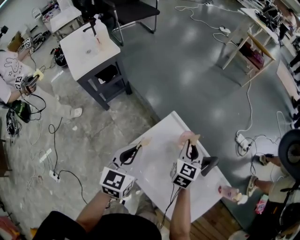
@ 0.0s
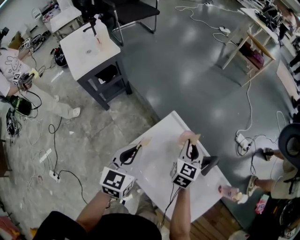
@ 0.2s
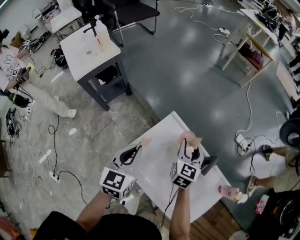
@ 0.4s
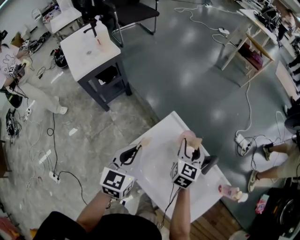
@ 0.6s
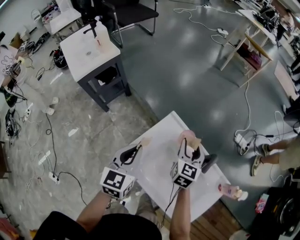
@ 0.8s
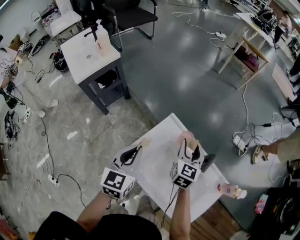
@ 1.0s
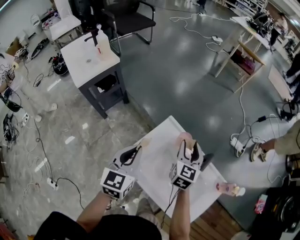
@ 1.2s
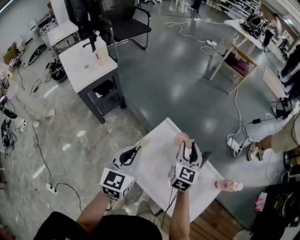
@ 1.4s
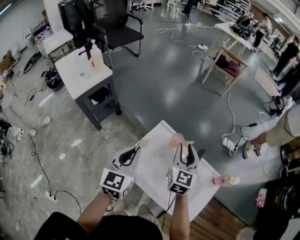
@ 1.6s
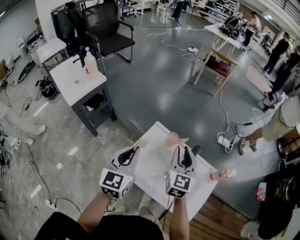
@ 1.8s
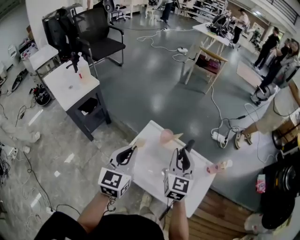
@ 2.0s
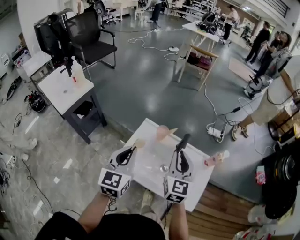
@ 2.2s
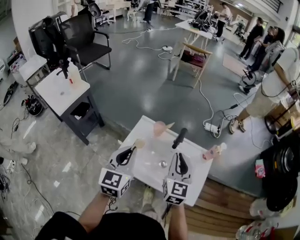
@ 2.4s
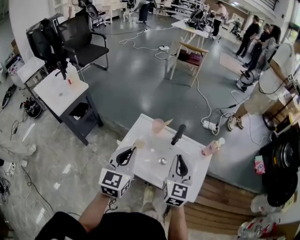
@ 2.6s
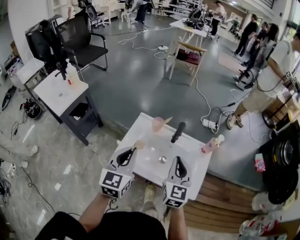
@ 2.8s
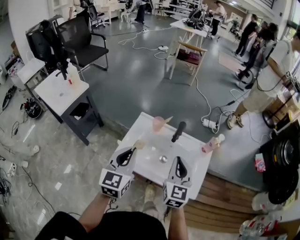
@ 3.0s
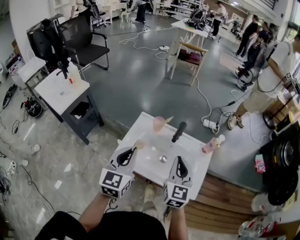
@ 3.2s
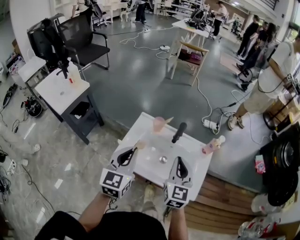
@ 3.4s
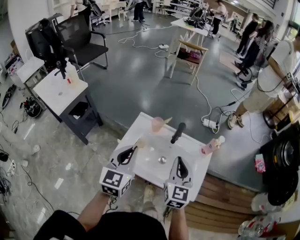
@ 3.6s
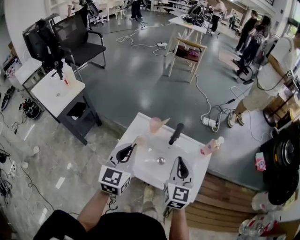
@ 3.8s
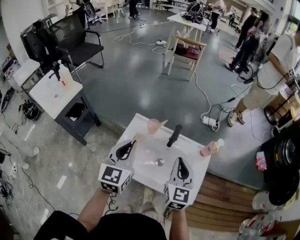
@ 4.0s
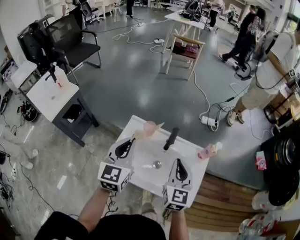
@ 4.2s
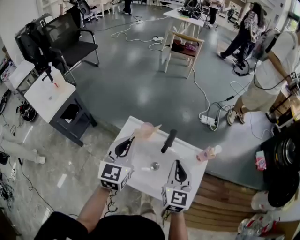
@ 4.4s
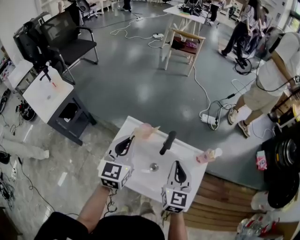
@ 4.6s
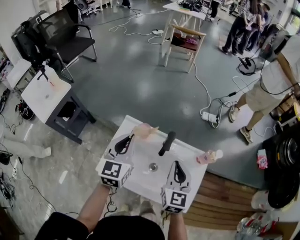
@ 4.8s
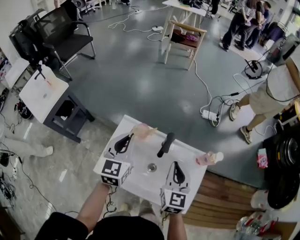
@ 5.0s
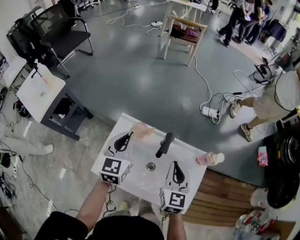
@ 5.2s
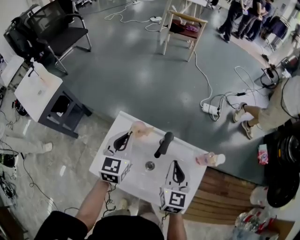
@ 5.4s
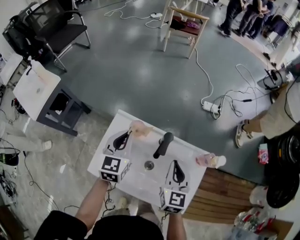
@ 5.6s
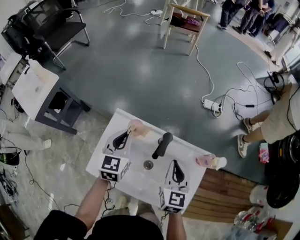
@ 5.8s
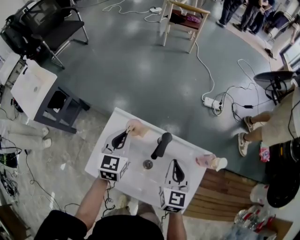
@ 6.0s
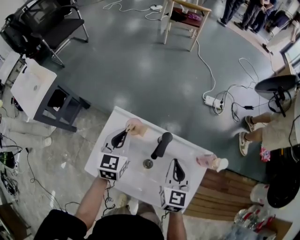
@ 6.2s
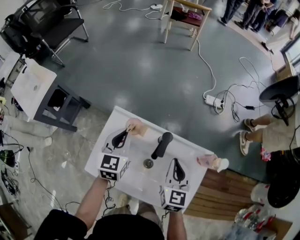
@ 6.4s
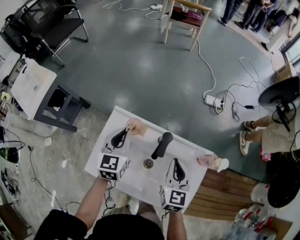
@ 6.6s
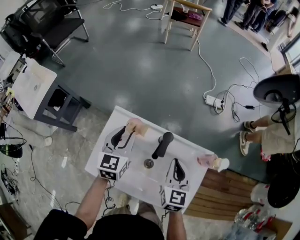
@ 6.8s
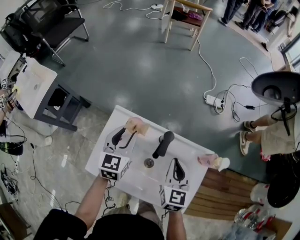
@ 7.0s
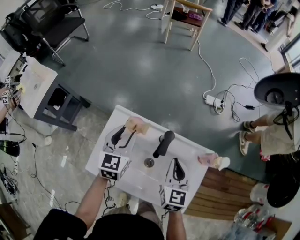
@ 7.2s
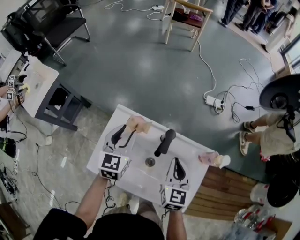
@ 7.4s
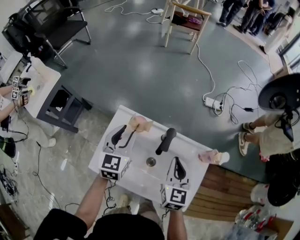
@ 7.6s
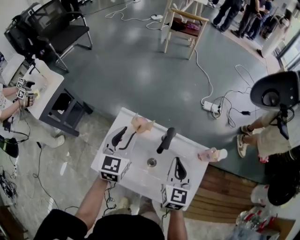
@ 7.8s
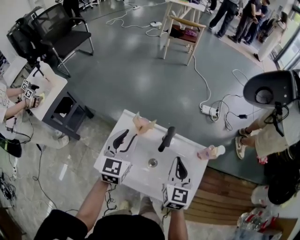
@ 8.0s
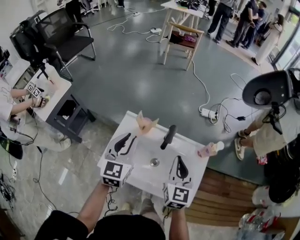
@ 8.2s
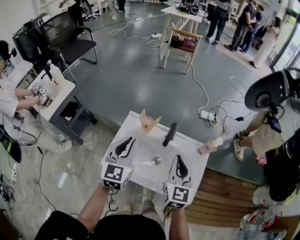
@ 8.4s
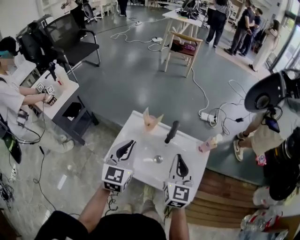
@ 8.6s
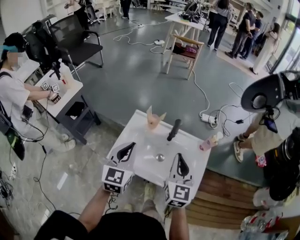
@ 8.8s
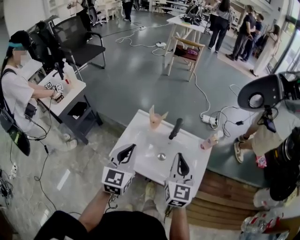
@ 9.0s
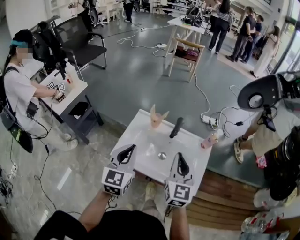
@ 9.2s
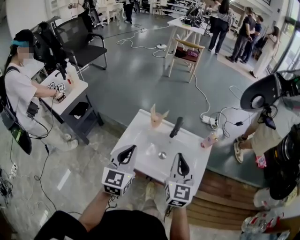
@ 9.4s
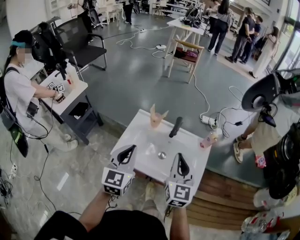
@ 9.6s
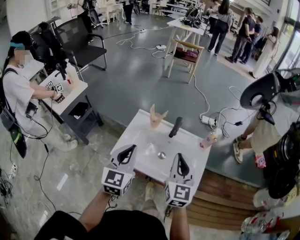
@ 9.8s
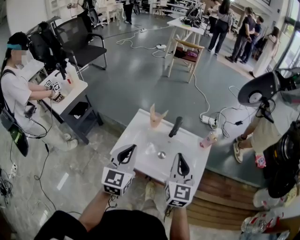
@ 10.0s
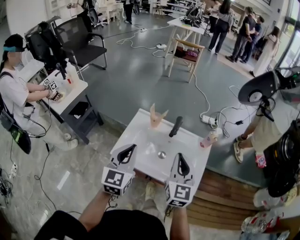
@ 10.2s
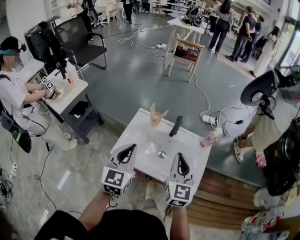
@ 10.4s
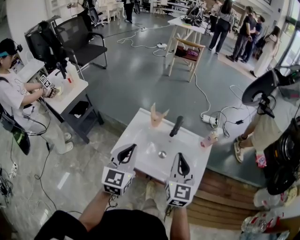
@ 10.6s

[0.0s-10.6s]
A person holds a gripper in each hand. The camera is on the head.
0.0s to 1.6s: The right gripper goes about 15 cm upward and backward; the left gripper goes some 10 cm upward.
1.6s to 3.0s: The right gripper travels backward and to the right by some 25 cm, and closes its fingers. The left gripper is displaced backward and to the right by some 15 cm.
3.0s to 4.6s: The left gripper is displaced forward by roughly 20 cm, while the right gripper moves forward and to the right, roughly 10 cm.
4.6s to 6.0s: Both grippers move downward and forward, some 15 cm.
6.0s to 7.6s: The left gripper opens up.
7.6s to 9.0s: The grippers both shift backward and upward by about 25 cm. The left gripper closes.
9.0s to 10.6s: The grippers stay close to where they were, moving slightly.

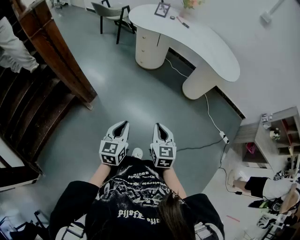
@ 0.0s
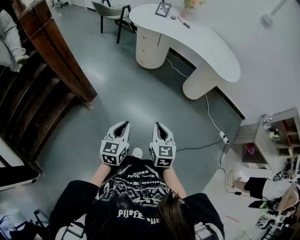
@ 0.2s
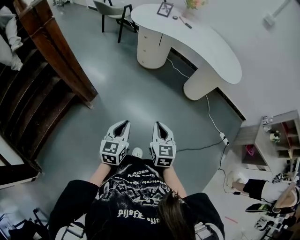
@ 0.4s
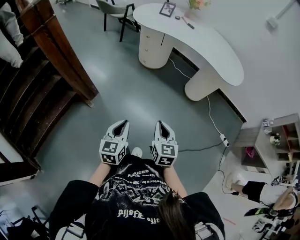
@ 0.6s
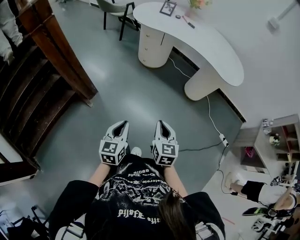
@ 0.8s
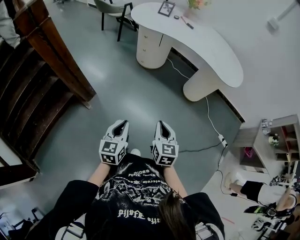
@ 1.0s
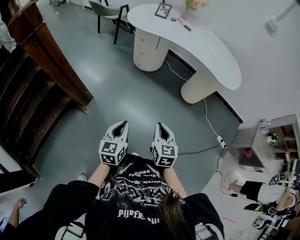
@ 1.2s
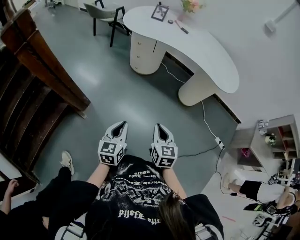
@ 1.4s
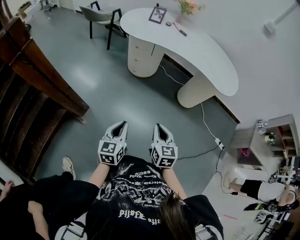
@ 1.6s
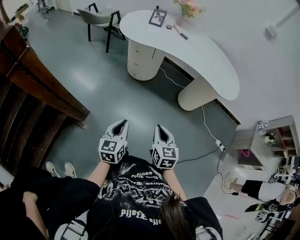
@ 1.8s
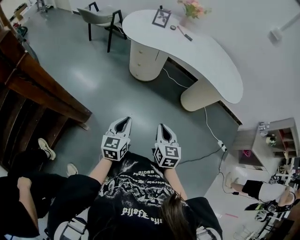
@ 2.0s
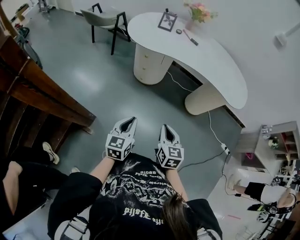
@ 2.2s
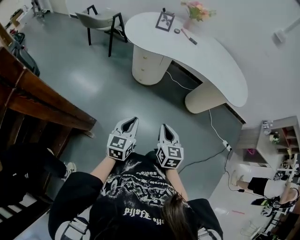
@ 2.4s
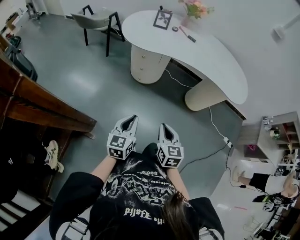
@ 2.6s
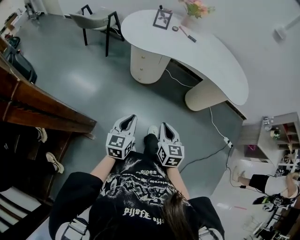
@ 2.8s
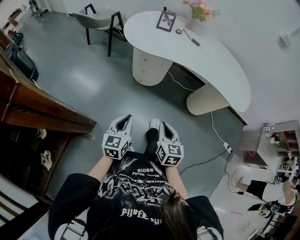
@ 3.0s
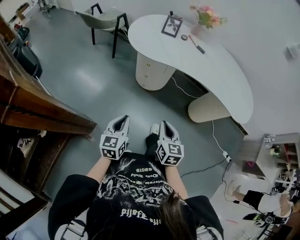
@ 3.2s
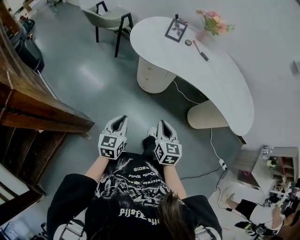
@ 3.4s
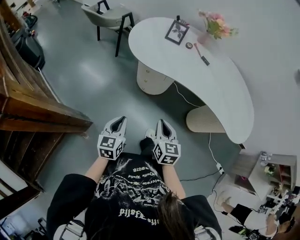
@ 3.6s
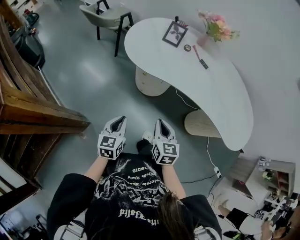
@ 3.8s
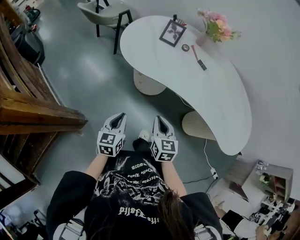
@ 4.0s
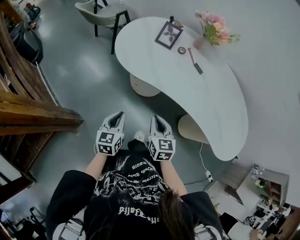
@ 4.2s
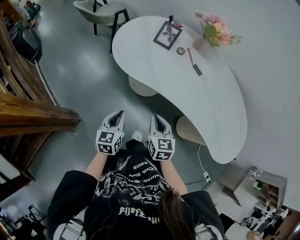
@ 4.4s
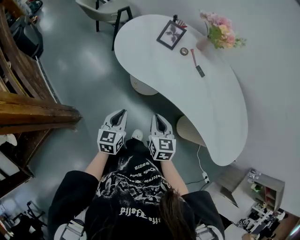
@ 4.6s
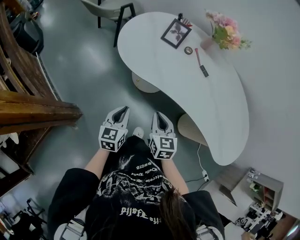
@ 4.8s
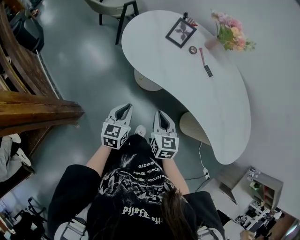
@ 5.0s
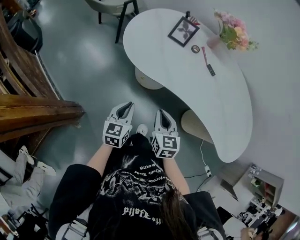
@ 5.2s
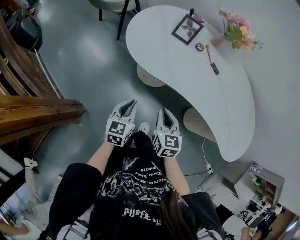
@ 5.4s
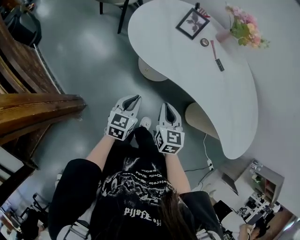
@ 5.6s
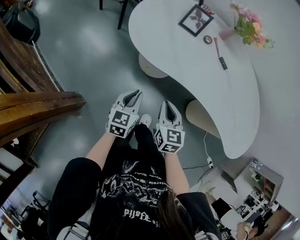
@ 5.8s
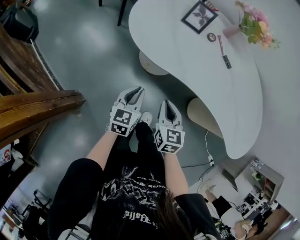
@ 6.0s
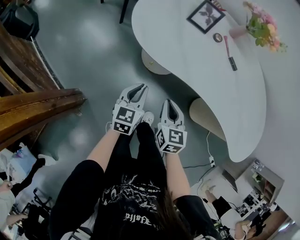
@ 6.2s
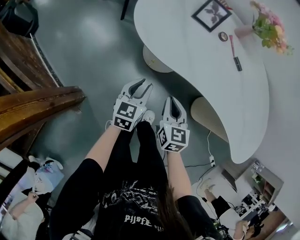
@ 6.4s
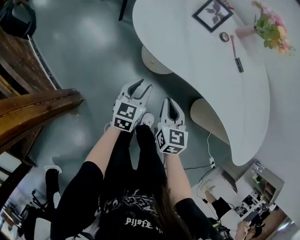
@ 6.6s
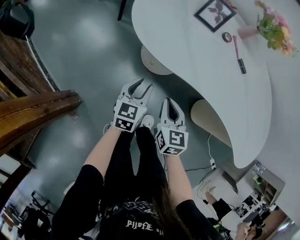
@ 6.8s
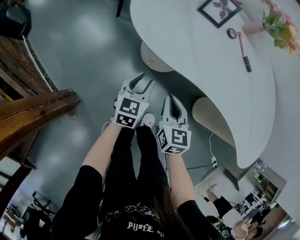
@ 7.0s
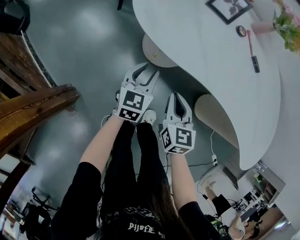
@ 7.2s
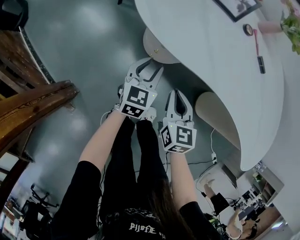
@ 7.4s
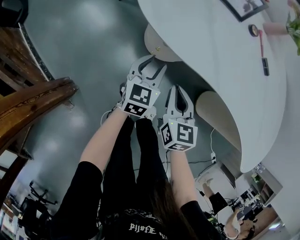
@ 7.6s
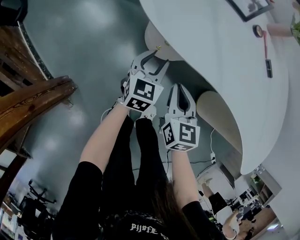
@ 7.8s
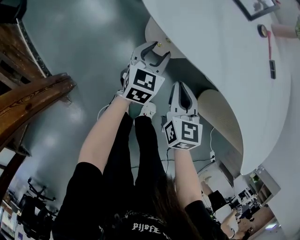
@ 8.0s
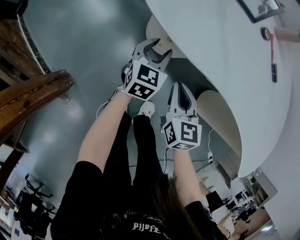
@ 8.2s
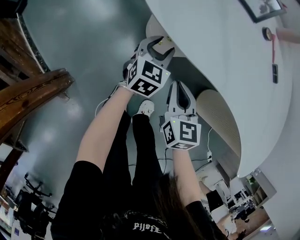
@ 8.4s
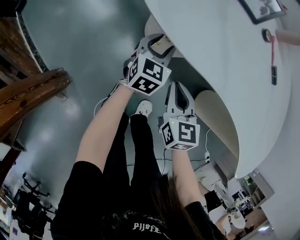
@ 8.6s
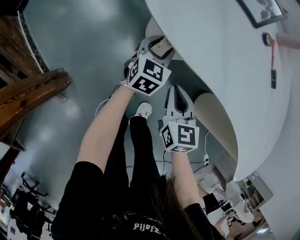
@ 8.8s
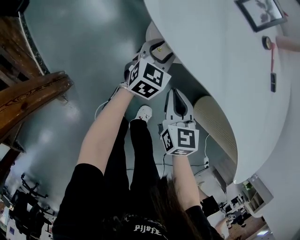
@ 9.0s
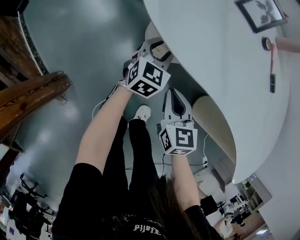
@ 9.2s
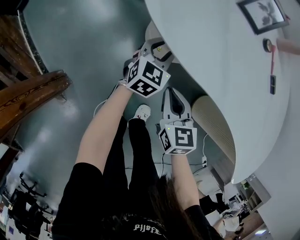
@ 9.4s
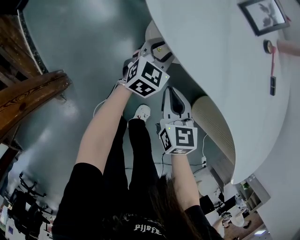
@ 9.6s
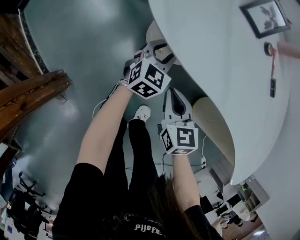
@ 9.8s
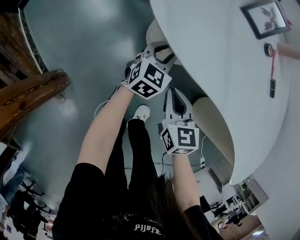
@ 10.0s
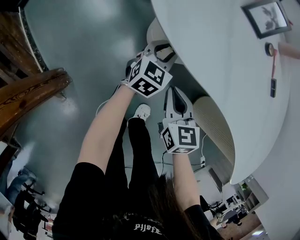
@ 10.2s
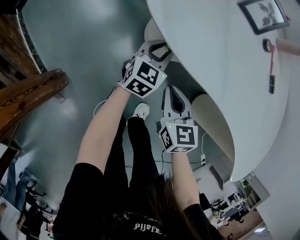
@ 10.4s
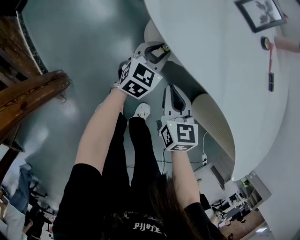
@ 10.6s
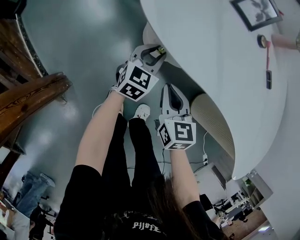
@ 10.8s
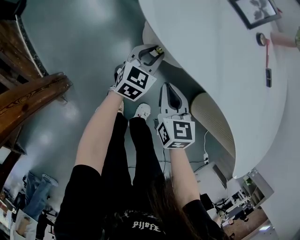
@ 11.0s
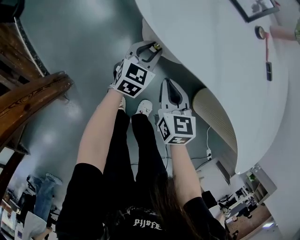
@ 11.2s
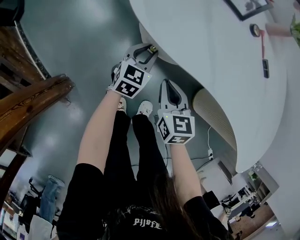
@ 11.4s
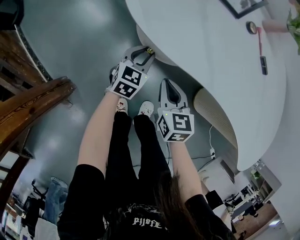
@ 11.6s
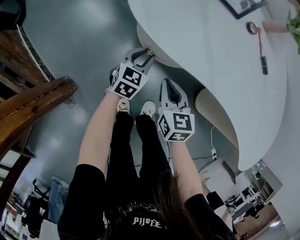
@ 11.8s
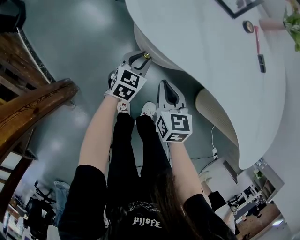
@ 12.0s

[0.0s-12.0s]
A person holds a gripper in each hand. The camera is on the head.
0.0s to 1.6s: Both grippers travel together forward, about 15 cm.
1.6s to 3.0s: Both grippers travel together forward and to the left, some 25 cm.
3.0s to 4.4s: The left gripper shifts some 25 cm forward and to the right. Meanwhile the right gripper is displaced forward by about 30 cm.
4.4s to 6.0s: The left gripper goes some 10 cm forward and downward. The right gripper travels to the left and downward by roughly 10 cm.
6.0s to 7.6s: The grippers both shift downward and forward by some 20 cm. The left gripper opens up.
7.6s to 9.0s: The left gripper is displaced forward by about 10 cm.
9.0s to 10.4s: The grippers move only a little.
10.4s to 12.0s: The left gripper goes some 5 cm backward.

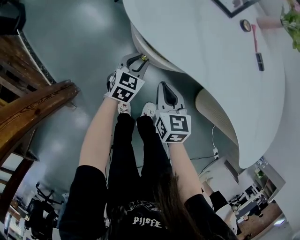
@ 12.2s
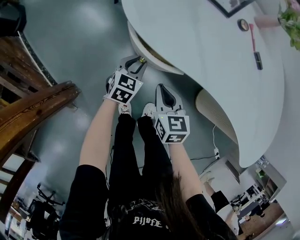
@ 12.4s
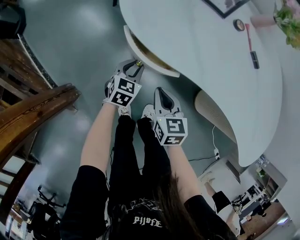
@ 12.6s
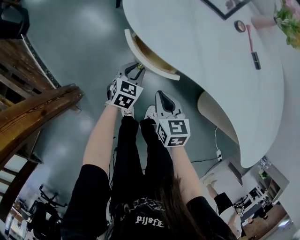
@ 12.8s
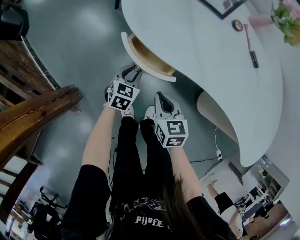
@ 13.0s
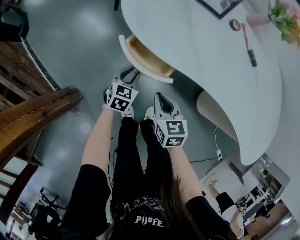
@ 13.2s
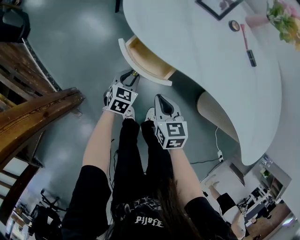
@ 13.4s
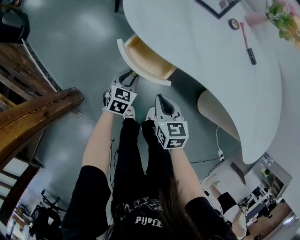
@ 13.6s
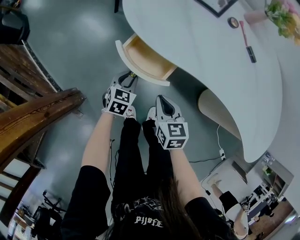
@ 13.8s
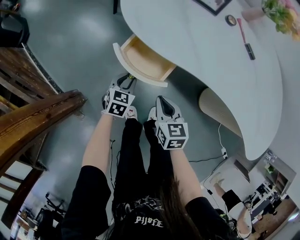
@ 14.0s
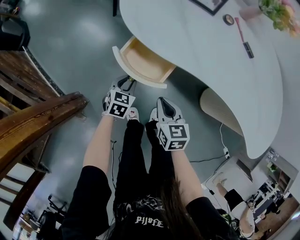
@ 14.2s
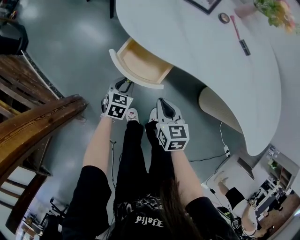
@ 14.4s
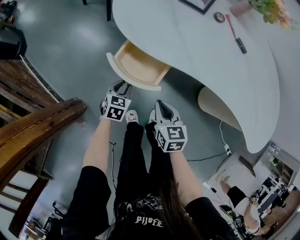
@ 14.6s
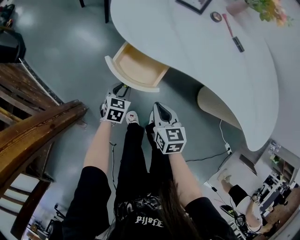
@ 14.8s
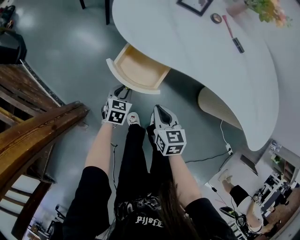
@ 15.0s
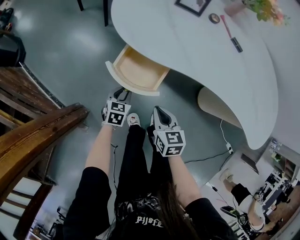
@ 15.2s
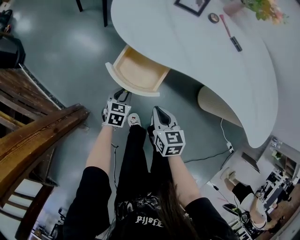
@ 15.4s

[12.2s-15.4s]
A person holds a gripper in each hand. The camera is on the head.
12.2s to 13.8s: Both grippers move backward, some 5 cm.
13.8s to 15.4s: The grippers move only a little.
